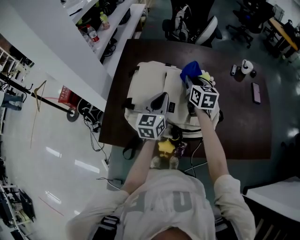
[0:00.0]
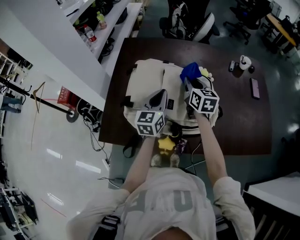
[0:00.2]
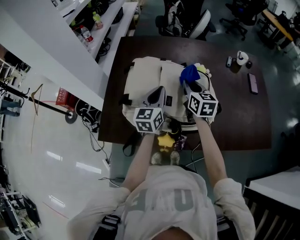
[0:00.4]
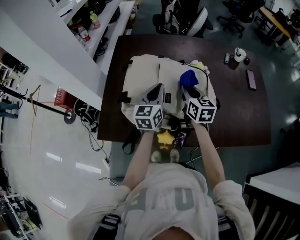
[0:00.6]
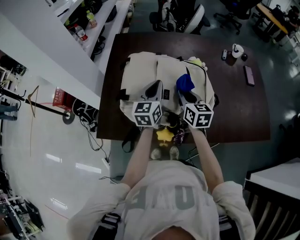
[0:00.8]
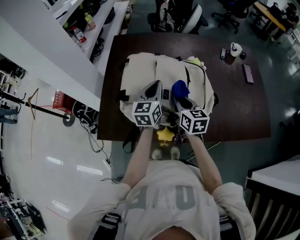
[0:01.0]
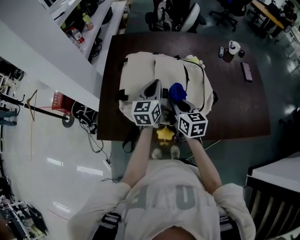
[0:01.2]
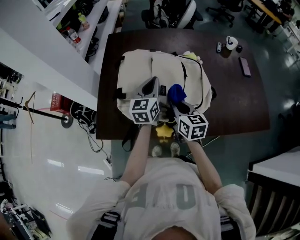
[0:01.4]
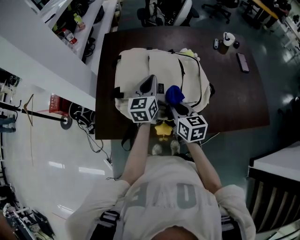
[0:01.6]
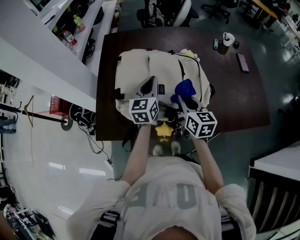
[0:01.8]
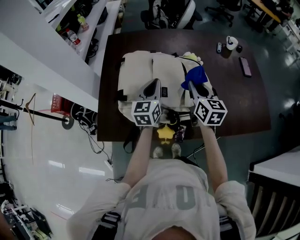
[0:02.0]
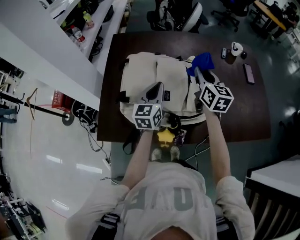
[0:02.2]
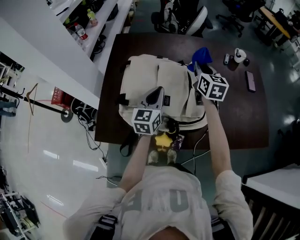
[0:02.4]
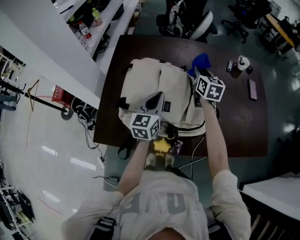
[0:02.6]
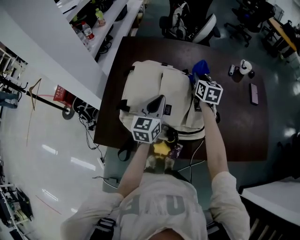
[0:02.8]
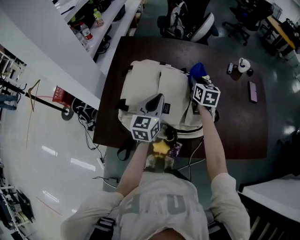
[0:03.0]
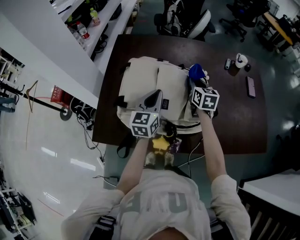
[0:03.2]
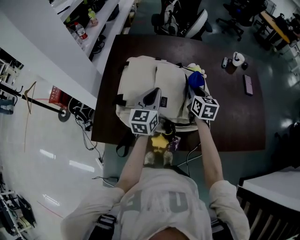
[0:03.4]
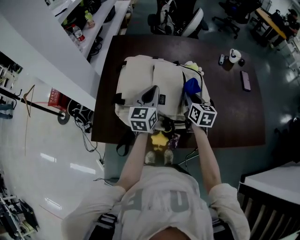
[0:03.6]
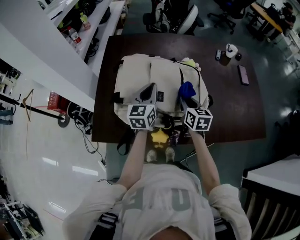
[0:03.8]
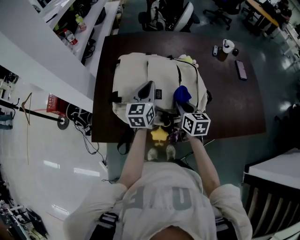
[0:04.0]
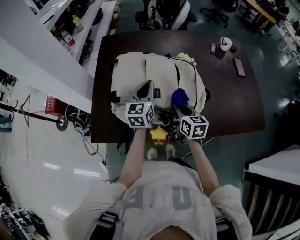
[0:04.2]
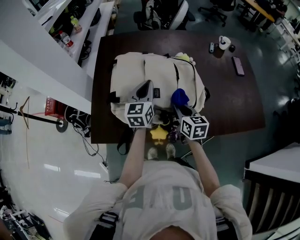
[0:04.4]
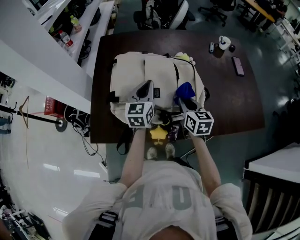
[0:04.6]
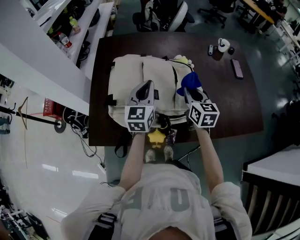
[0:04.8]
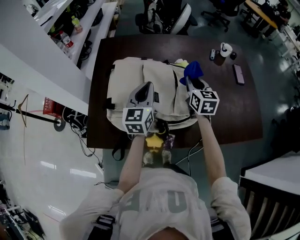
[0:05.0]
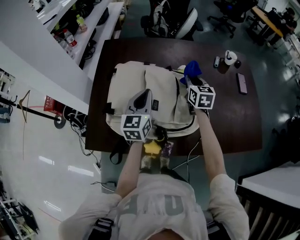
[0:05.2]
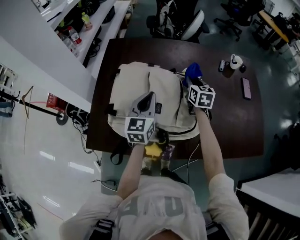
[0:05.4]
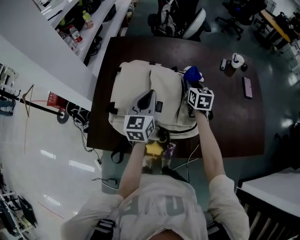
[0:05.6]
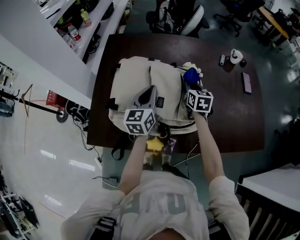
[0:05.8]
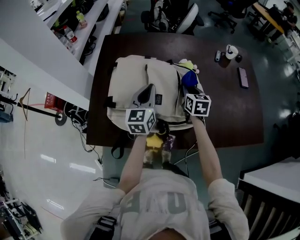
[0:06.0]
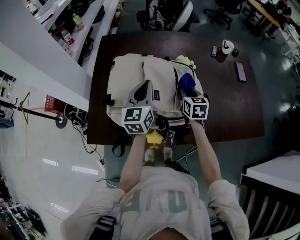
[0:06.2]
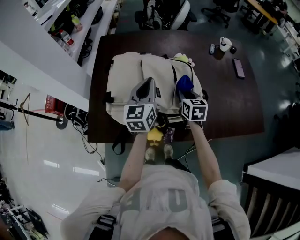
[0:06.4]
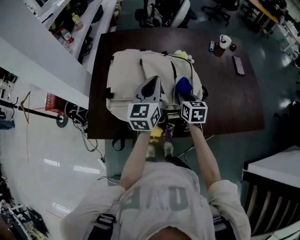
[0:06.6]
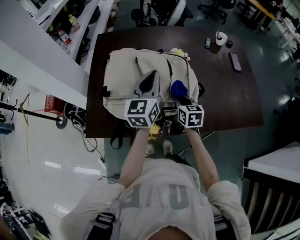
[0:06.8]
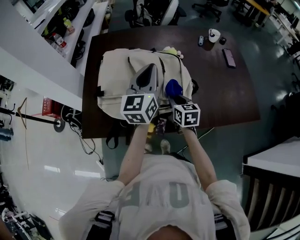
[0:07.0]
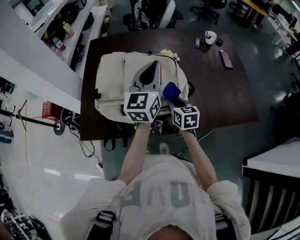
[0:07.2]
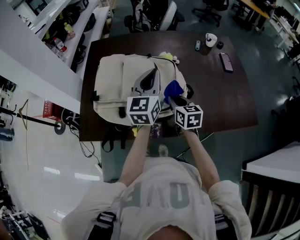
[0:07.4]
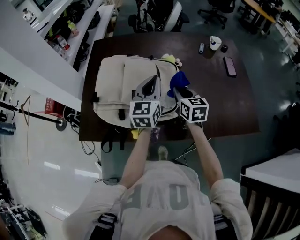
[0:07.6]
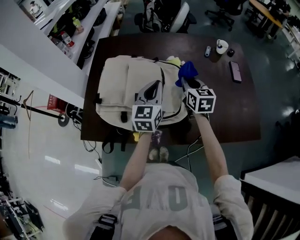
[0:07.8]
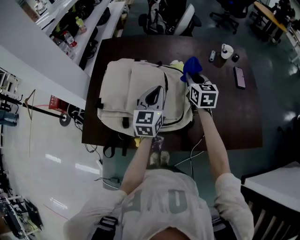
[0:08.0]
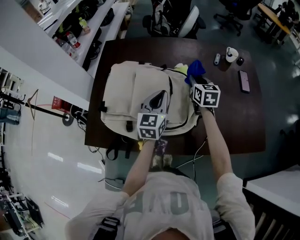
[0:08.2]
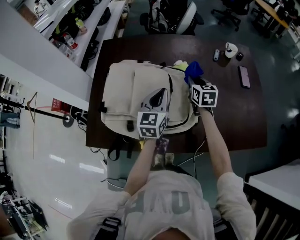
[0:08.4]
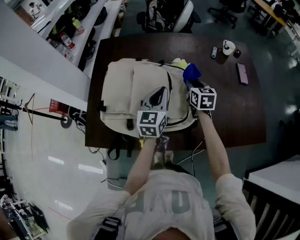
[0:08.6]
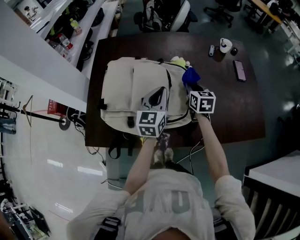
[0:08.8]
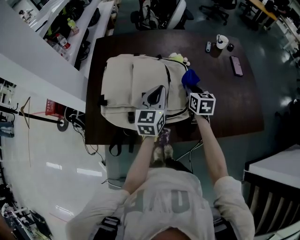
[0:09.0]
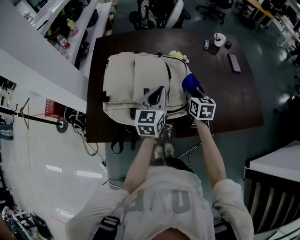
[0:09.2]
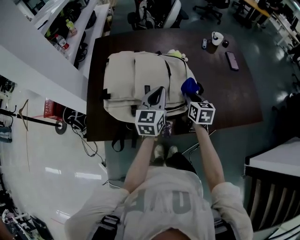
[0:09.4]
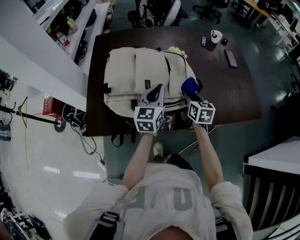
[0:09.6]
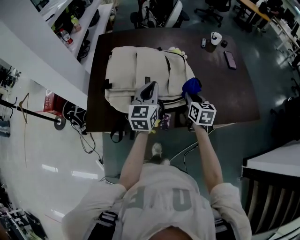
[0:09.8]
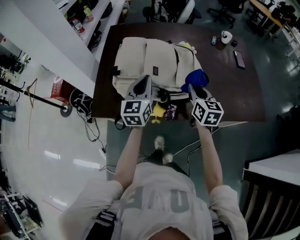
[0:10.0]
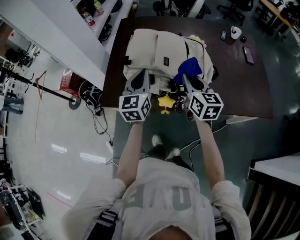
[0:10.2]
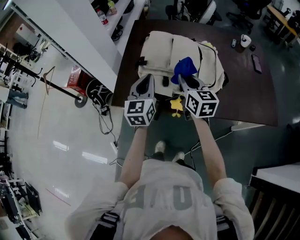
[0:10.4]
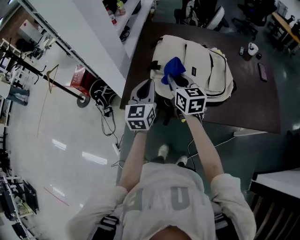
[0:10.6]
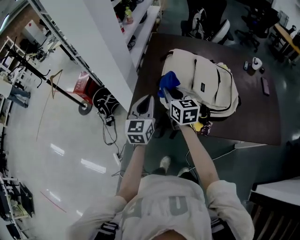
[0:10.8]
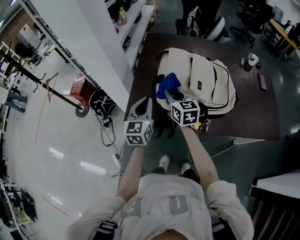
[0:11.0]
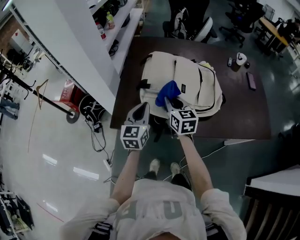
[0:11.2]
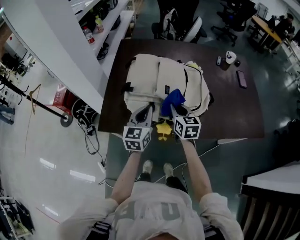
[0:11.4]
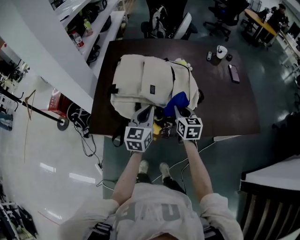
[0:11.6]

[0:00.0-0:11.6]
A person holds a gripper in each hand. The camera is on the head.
0:00.0 to 0:01.4: The right gripper moves backward, approximately 20 cm.
0:01.4 to 0:02.8: The right gripper shifts approximately 25 cm forward.
0:02.8 to 0:04.4: The right gripper travels backward by some 25 cm.
0:04.4 to 0:05.8: The right gripper travels forward by some 20 cm.
0:05.8 to 0:07.2: The right gripper moves backward, approximately 20 cm; the left gripper shifts about 20 cm upward, to the right and backward.
0:07.2 to 0:08.8: The right gripper goes approximately 15 cm forward. The left gripper moves downward, some 15 cm.
0:08.8 to 0:10.2: The right gripper goes approximately 25 cm backward, upward and to the left, and swivels approximately 20 degrees; the left gripper is displaced backward and to the left by some 20 cm.
0:10.2 to 0:11.6: The left gripper shifts approximately 5 cm downward, and goes to the left and returns, about 15 cm each way. Meanwhile the right gripper travels downward by approximately 10 cm, and reaches about 25 cm to the left, then returns.

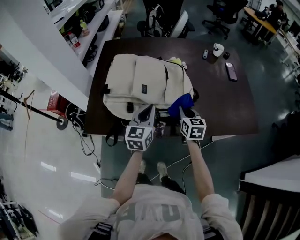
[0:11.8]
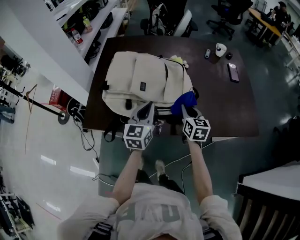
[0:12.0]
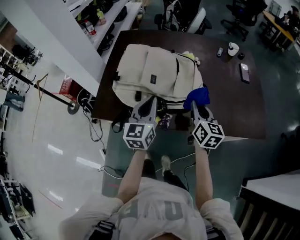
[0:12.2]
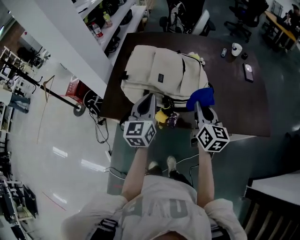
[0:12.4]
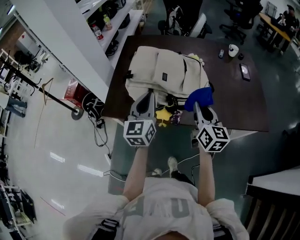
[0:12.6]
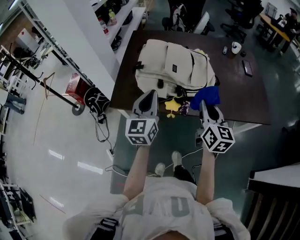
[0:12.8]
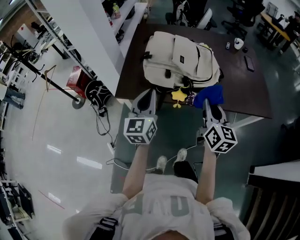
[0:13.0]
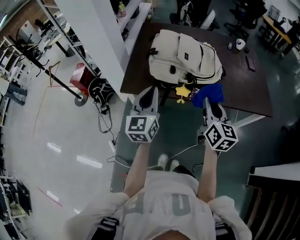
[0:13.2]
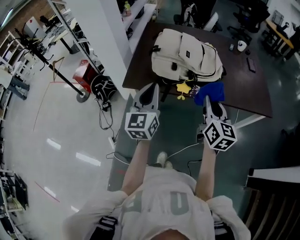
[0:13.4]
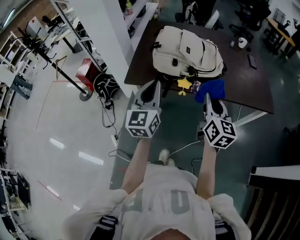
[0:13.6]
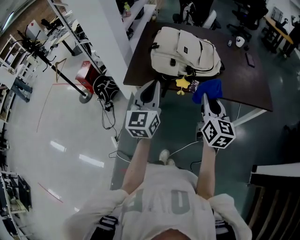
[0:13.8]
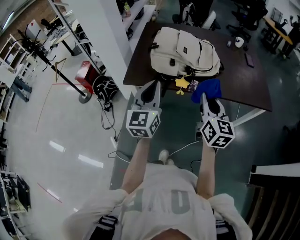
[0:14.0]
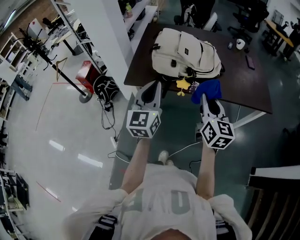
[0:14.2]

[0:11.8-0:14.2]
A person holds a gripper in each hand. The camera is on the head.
0:11.8 to 0:13.0: The left gripper moves backward, to the left and upward, some 25 cm, while the right gripper moves backward, upward and to the left, some 30 cm, and swivels approximately 20 degrees.
0:13.0 to 0:14.2: The right gripper shifts approximately 10 cm backward; the left gripper goes approximately 10 cm backward and upward.

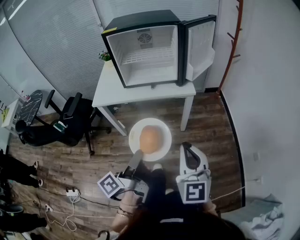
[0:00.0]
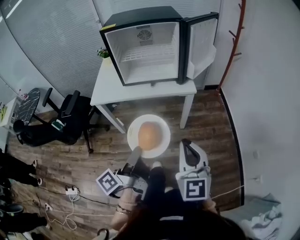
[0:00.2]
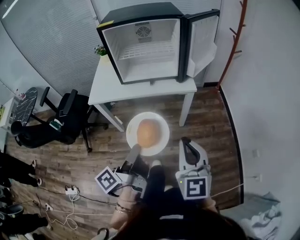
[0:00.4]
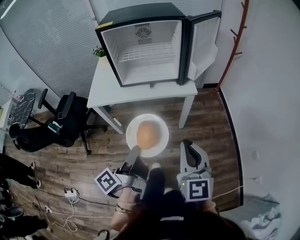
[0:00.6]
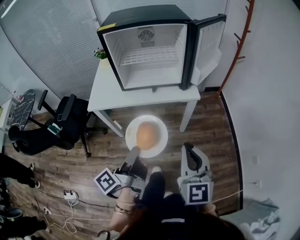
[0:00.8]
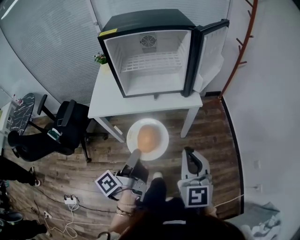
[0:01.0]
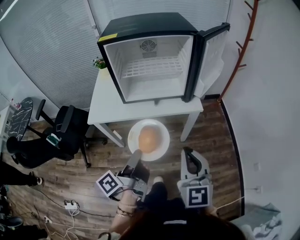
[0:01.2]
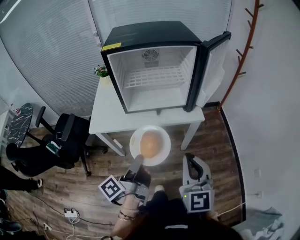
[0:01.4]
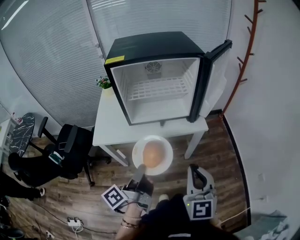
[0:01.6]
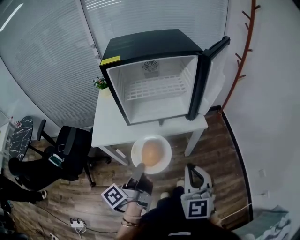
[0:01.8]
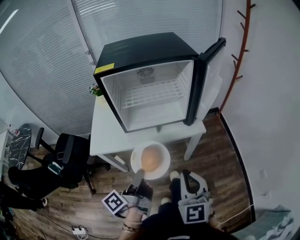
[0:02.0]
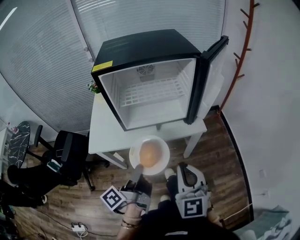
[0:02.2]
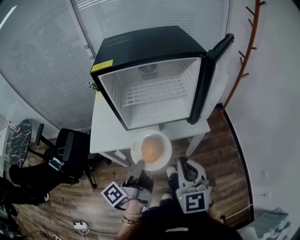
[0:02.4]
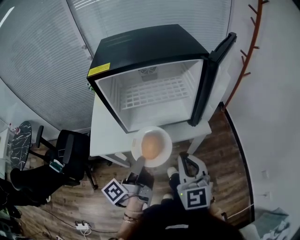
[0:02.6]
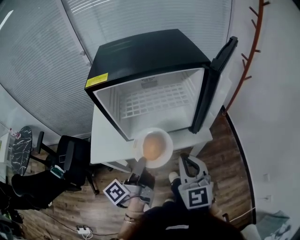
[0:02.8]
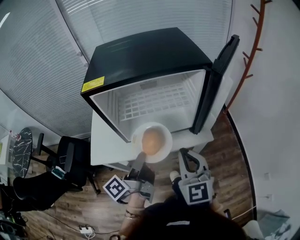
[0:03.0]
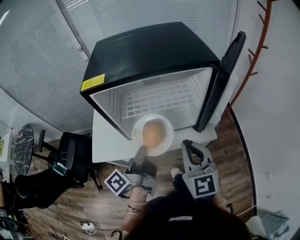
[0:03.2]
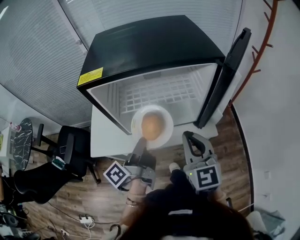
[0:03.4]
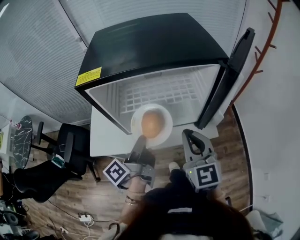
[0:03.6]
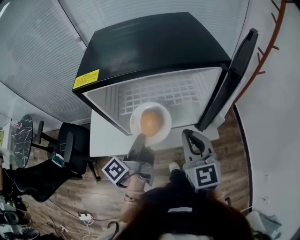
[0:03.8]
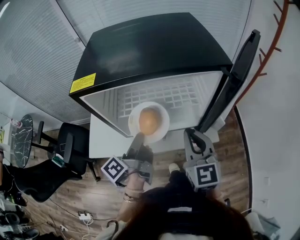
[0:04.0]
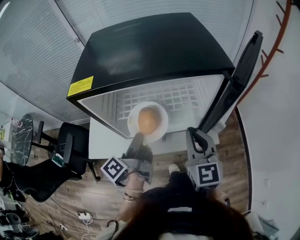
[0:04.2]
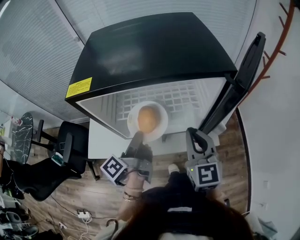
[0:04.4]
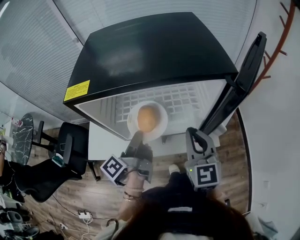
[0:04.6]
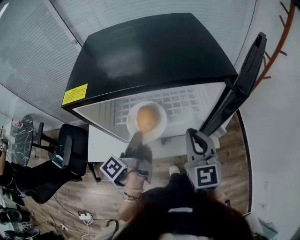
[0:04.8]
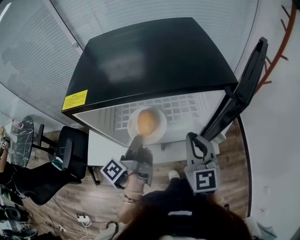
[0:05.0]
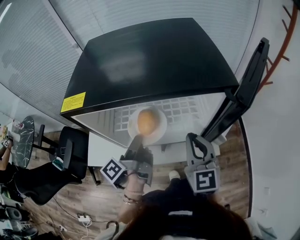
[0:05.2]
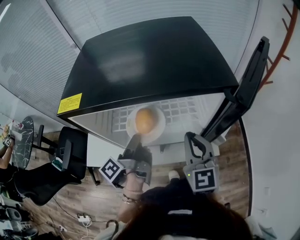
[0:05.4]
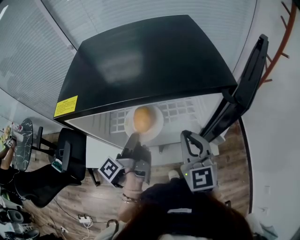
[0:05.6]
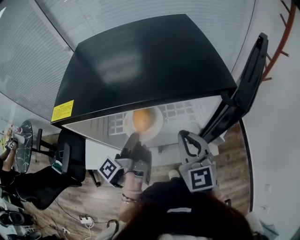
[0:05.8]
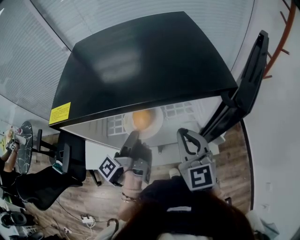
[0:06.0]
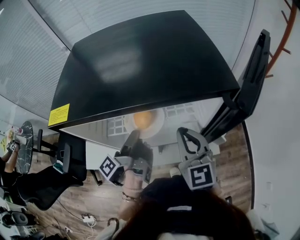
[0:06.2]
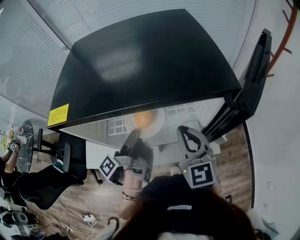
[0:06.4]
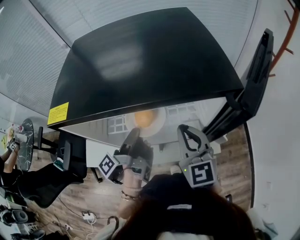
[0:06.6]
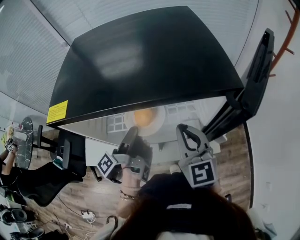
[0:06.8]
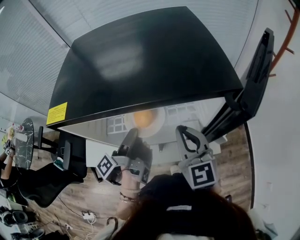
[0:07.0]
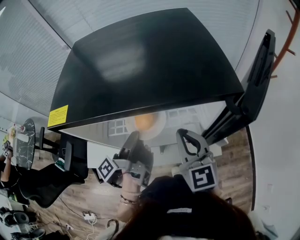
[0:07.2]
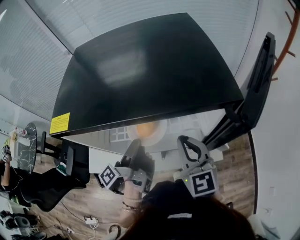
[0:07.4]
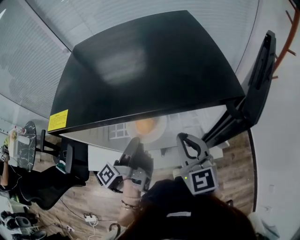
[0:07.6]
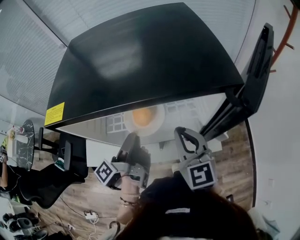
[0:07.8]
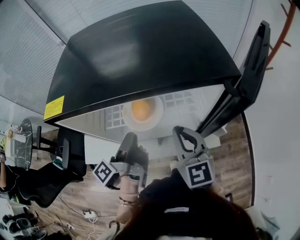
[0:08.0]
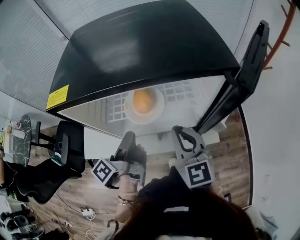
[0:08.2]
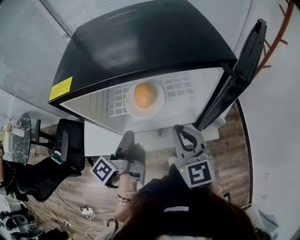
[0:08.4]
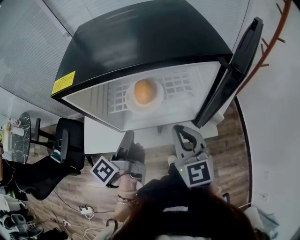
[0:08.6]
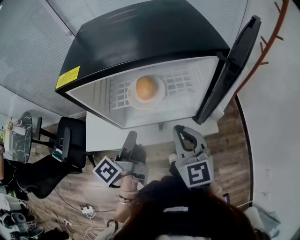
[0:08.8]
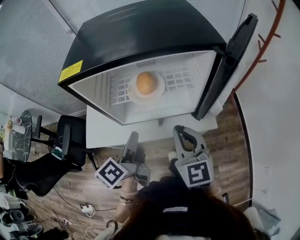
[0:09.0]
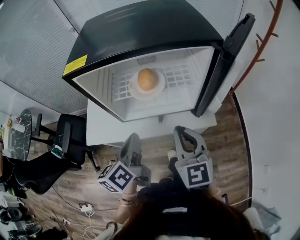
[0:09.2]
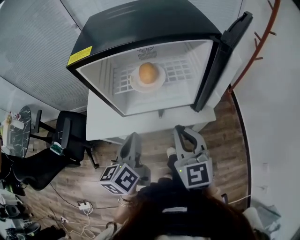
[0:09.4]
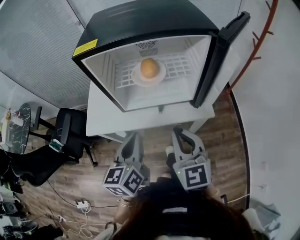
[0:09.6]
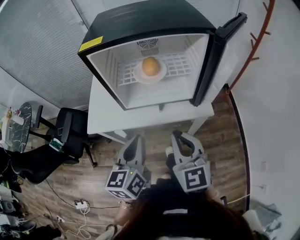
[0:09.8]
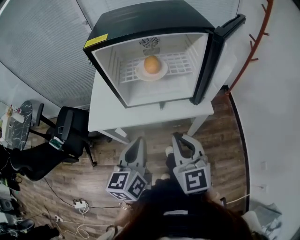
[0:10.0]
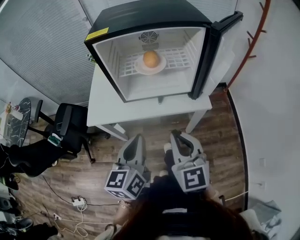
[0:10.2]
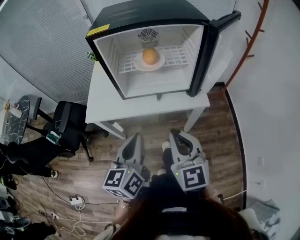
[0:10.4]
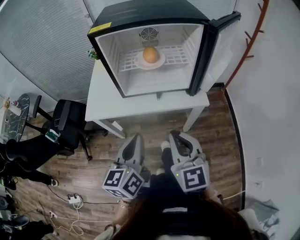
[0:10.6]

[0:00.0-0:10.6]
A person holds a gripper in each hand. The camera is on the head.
0:00.0 to 0:01.6: The right gripper shifts by approximately 20 cm.
0:01.6 to 0:03.0: The right gripper changes place by approximately 20 cm.
0:03.0 to 0:04.6: The right gripper moves roughly 15 cm.
0:07.6 to 0:09.0: The right gripper ends up about 10 cm from where it was.
0:09.0 to 0:10.6: The right gripper moves approximately 20 cm.
